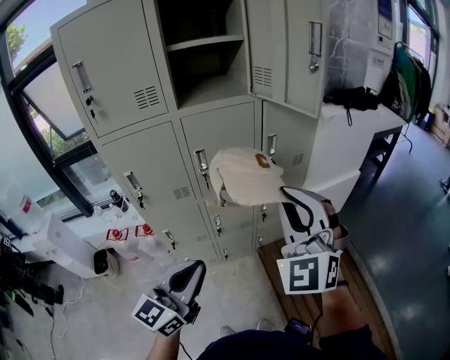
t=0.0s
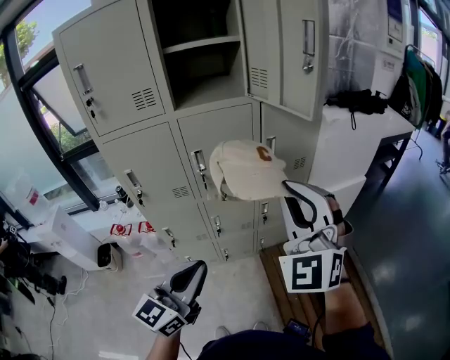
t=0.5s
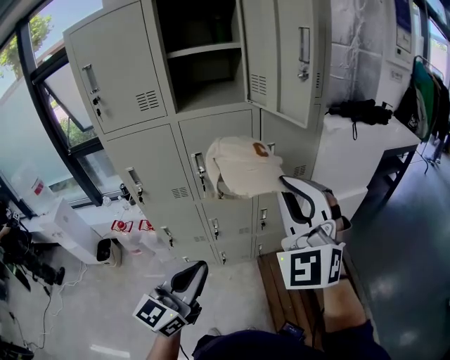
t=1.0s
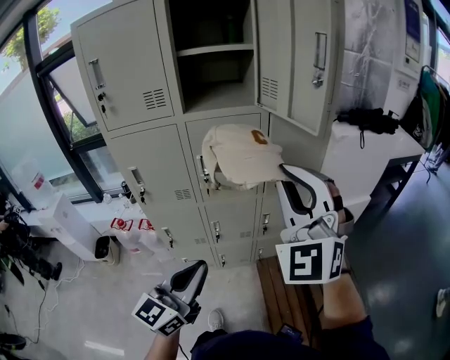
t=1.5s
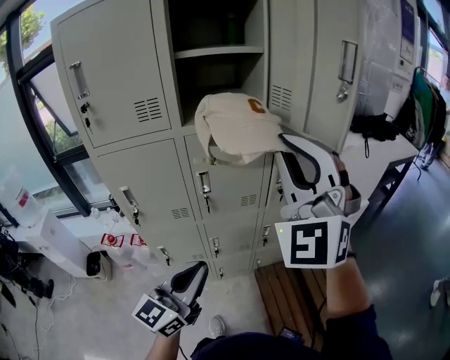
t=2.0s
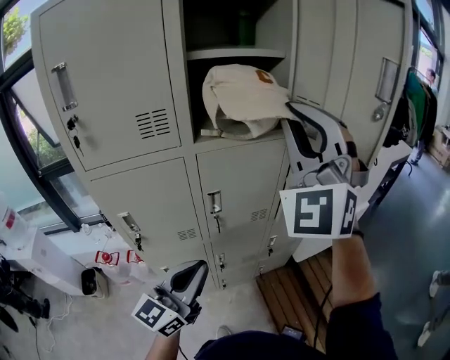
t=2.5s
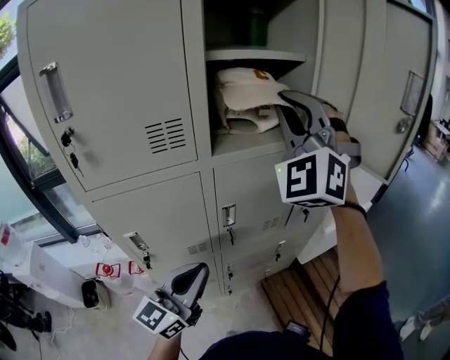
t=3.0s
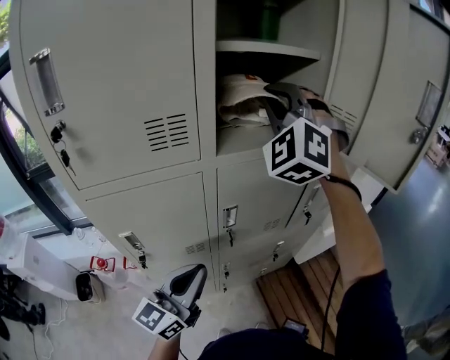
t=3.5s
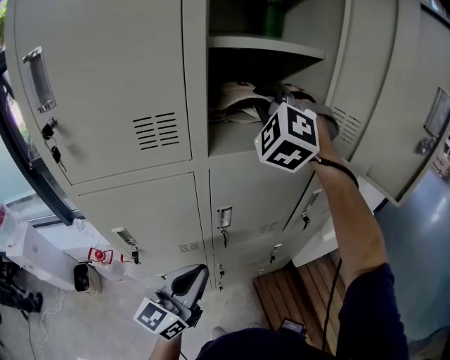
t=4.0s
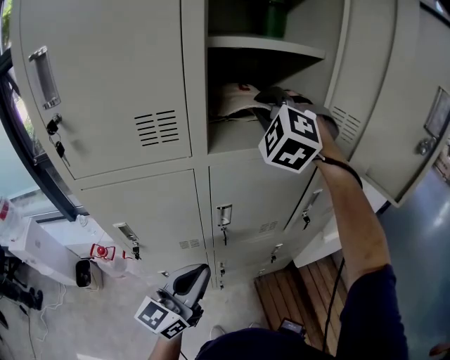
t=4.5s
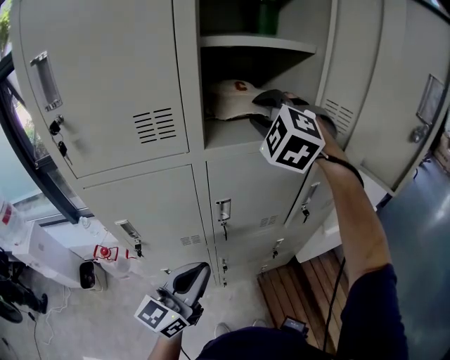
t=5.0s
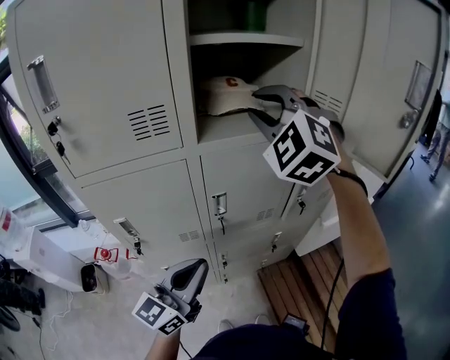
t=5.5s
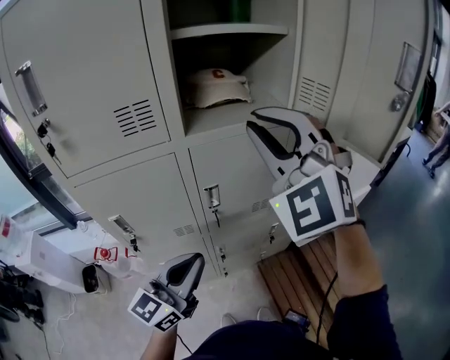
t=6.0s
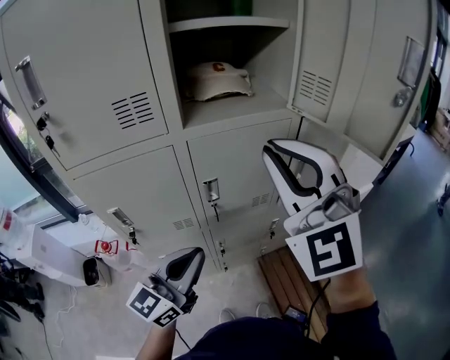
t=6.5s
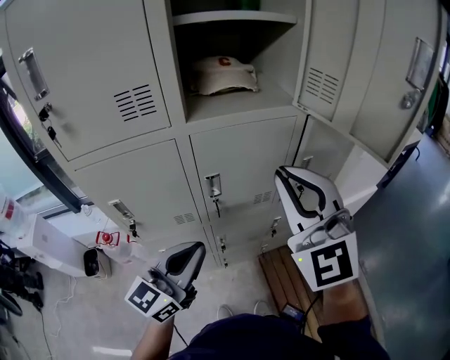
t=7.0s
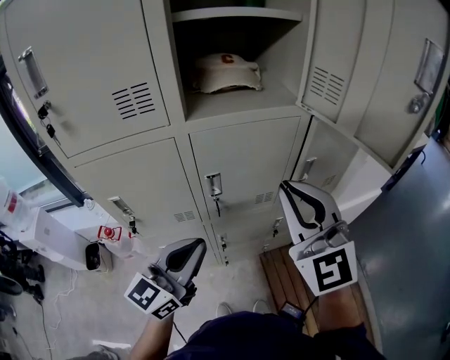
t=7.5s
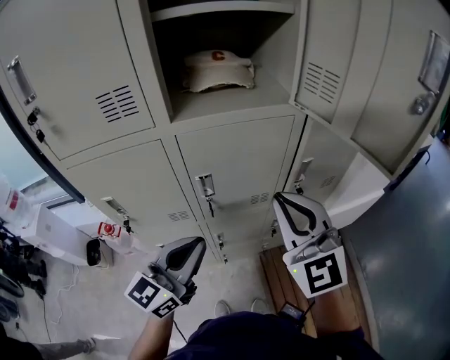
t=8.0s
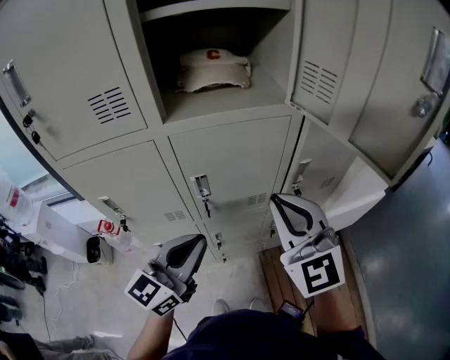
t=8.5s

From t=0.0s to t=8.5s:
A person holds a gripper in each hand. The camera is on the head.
From t=0.0s to t=2.0s: The right gripper goes some 15 cm upward and forward, while the left gripper heads forward, covering approximately 10 cm.
From t=2.0s to t=4.0s: The right gripper goes roughly 35 cm forward and to the left, and rotates about 30 degrees; the left gripper travels forward and to the left by about 20 cm.
From t=4.0s to t=6.5s: The left gripper shifts by about 5 cm. The right gripper travels backward by roughly 25 cm, and changes its angle by about 30 degrees.
From t=6.5s to t=8.5s: The right gripper is displaced downward and to the right by approximately 15 cm, and turns by roughly 20 degrees. The left gripper heads to the right, covering some 5 cm.

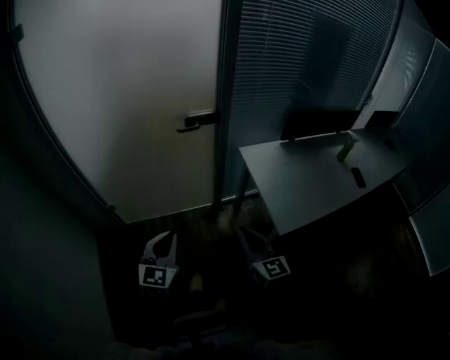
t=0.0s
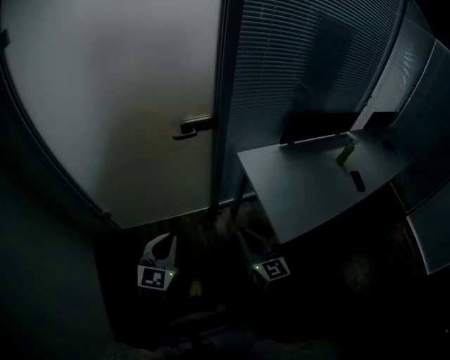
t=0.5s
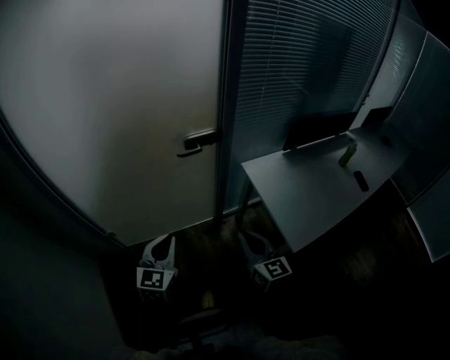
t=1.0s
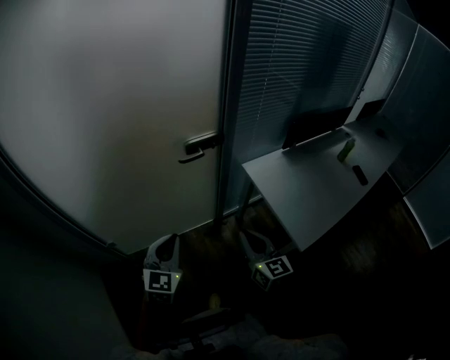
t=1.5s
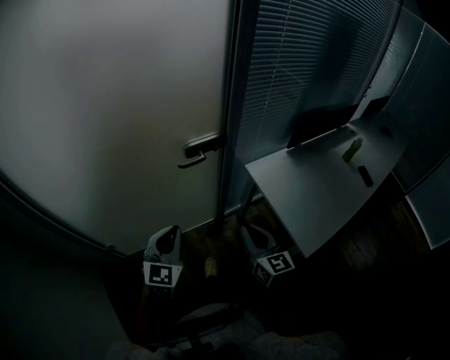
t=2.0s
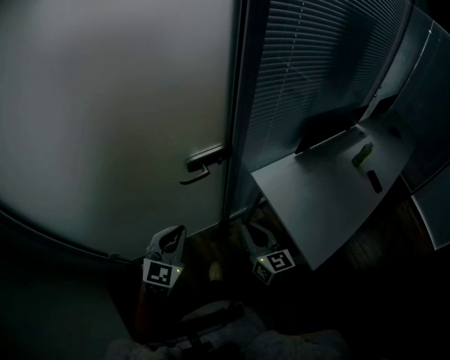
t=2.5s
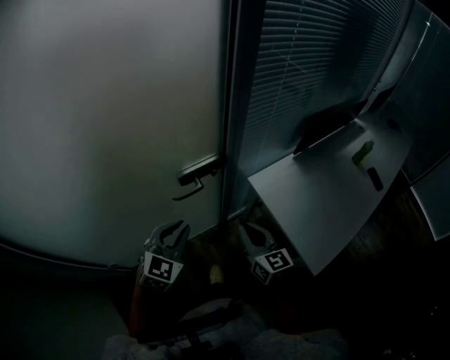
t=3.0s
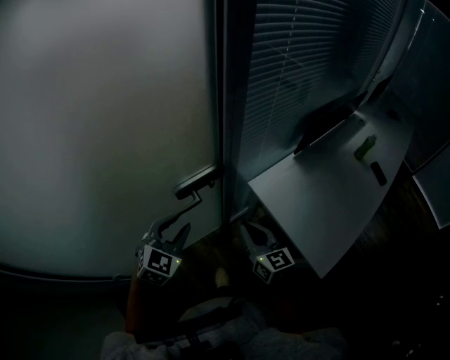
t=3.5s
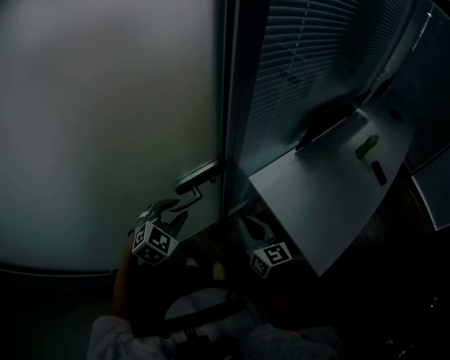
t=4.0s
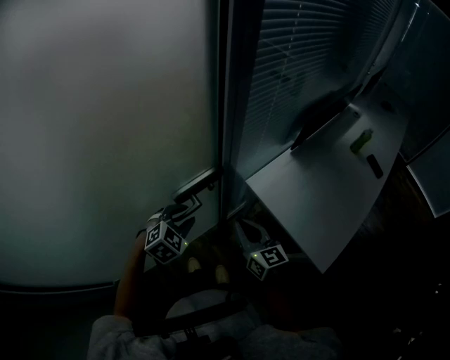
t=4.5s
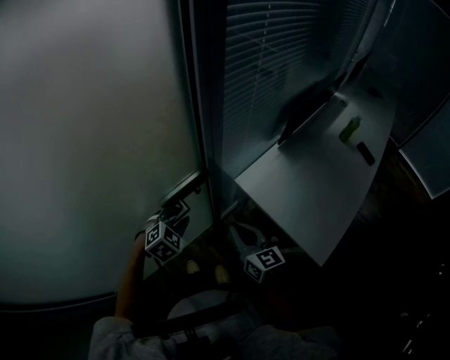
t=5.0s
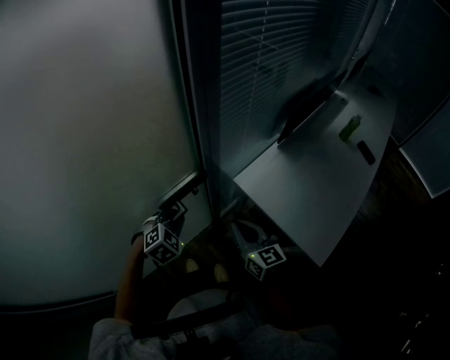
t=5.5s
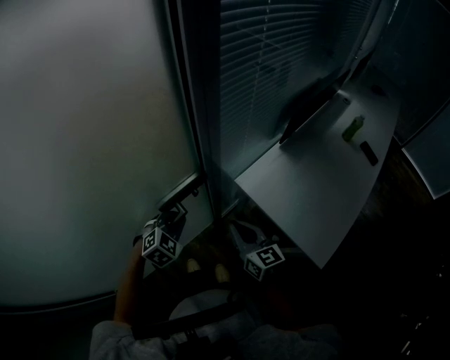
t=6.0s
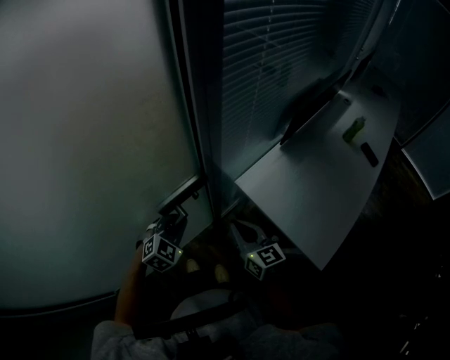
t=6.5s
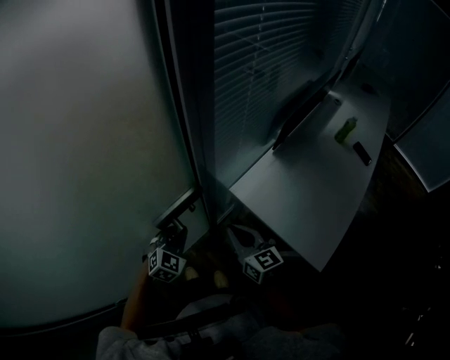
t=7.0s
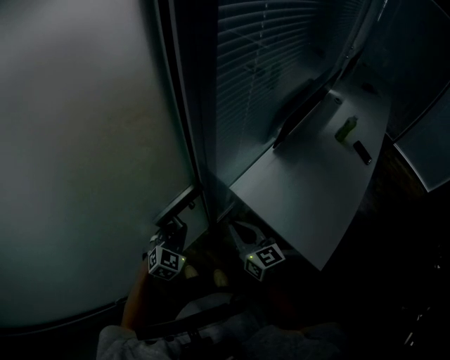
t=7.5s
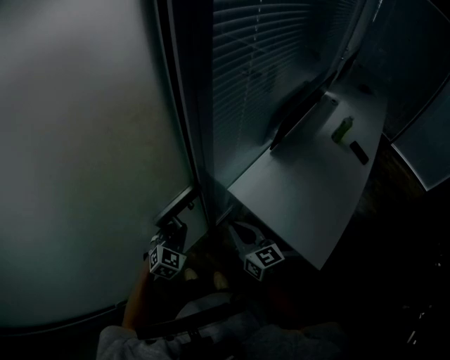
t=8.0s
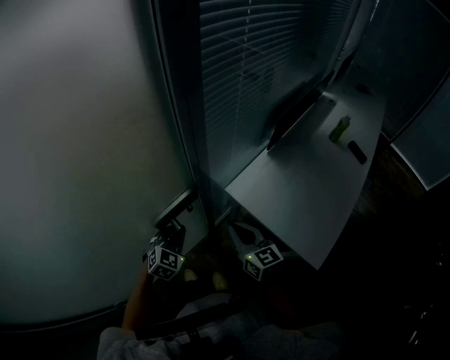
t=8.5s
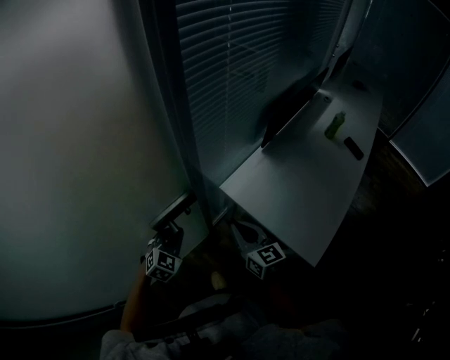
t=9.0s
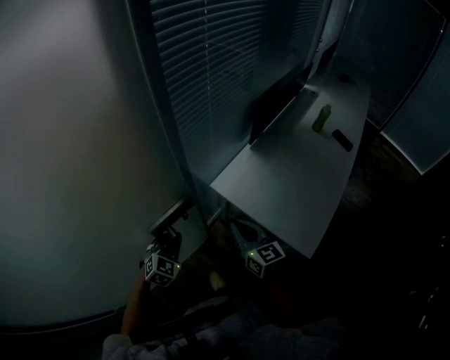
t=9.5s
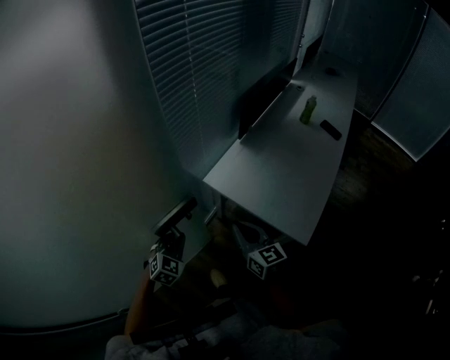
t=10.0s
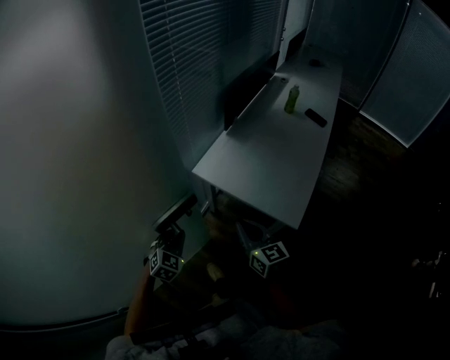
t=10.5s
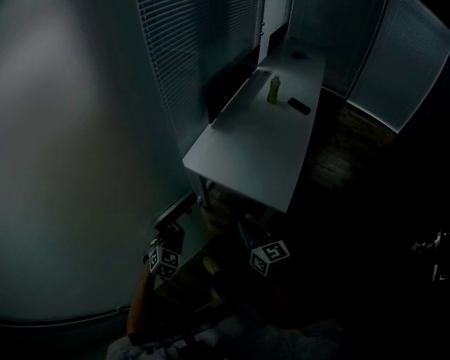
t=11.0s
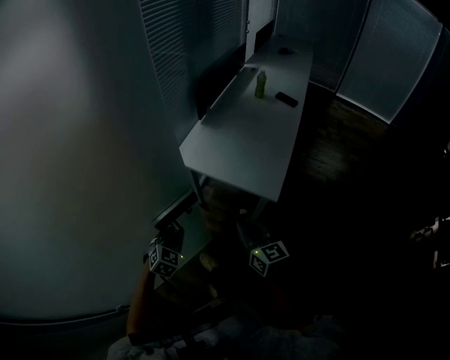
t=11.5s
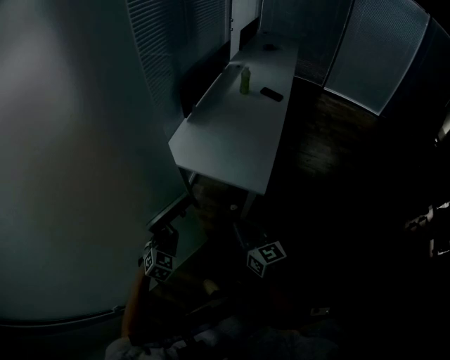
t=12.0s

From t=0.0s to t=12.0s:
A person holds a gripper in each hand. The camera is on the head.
From t=0.0s to t=2.0s: Both grippers move forward, roughly 20 cm.
From t=2.0s to t=4.0s: Both grippers move forward, approximately 20 cm. The left gripper swivels roughly 40 degrees, and opens up.
From t=4.0s to t=6.0s: The left gripper travels downward by about 10 cm, and closes.
From t=6.0s to t=8.0s: There are only small adjustments of the grippers.
From t=8.0s to t=10.0s: The left gripper goes roughly 10 cm backward and to the right, while the right gripper is displaced to the right and backward by about 10 cm.
From t=10.0s to t=12.0s: The two grippers go approximately 20 cm backward and to the right.

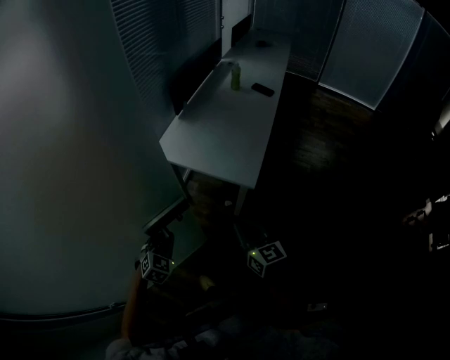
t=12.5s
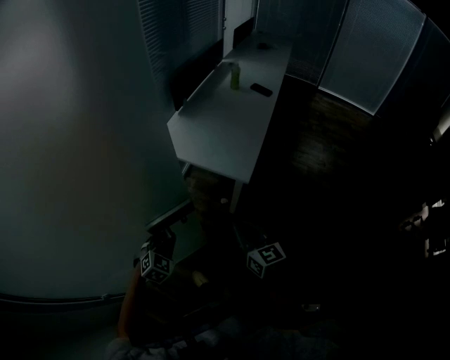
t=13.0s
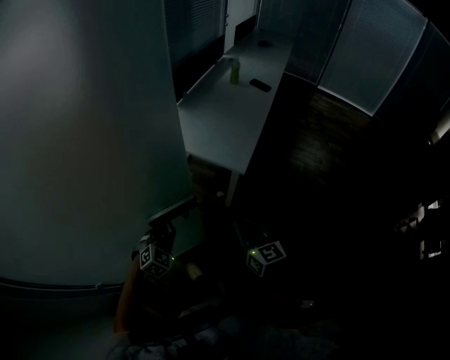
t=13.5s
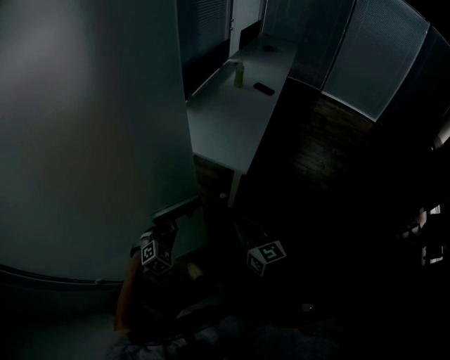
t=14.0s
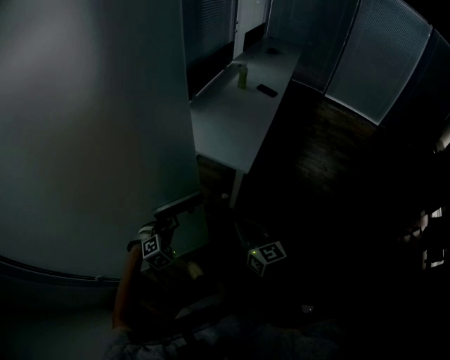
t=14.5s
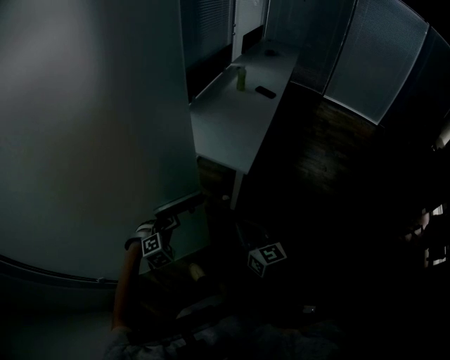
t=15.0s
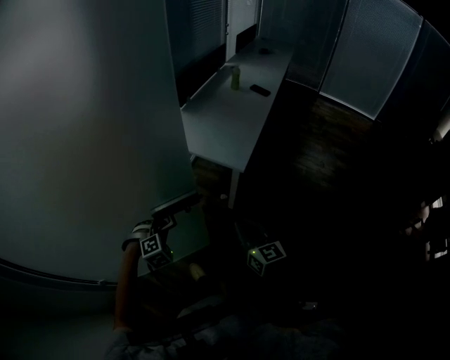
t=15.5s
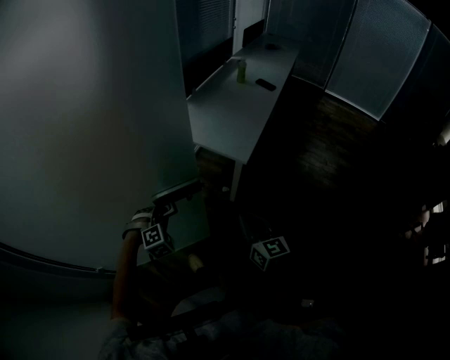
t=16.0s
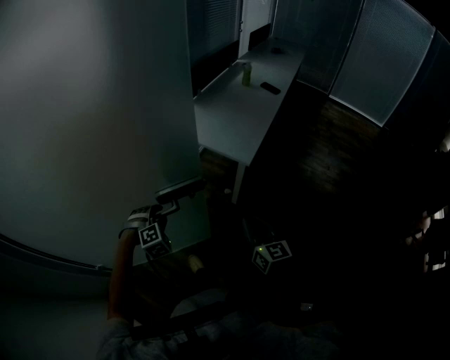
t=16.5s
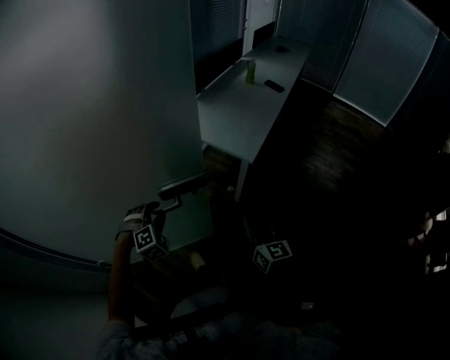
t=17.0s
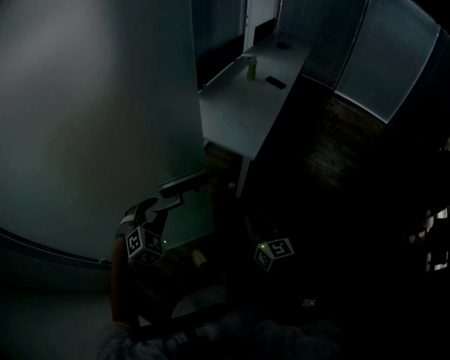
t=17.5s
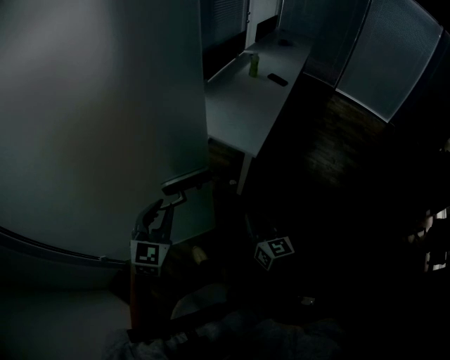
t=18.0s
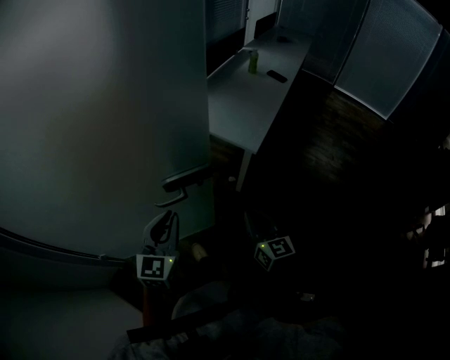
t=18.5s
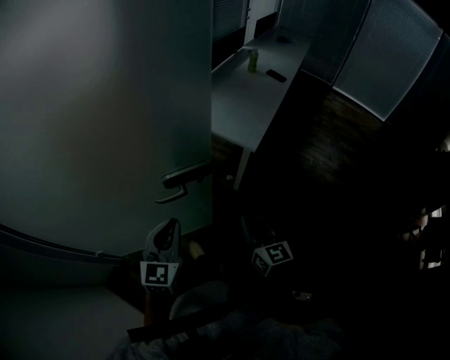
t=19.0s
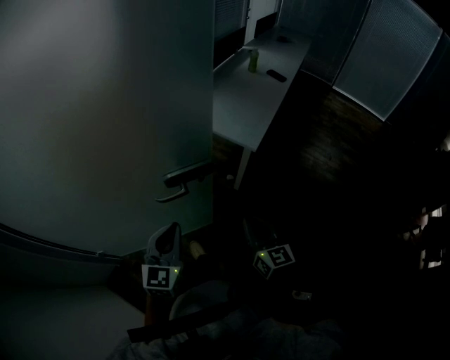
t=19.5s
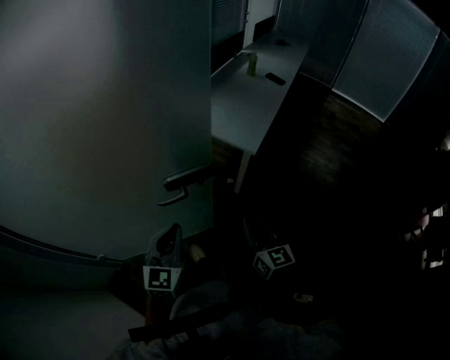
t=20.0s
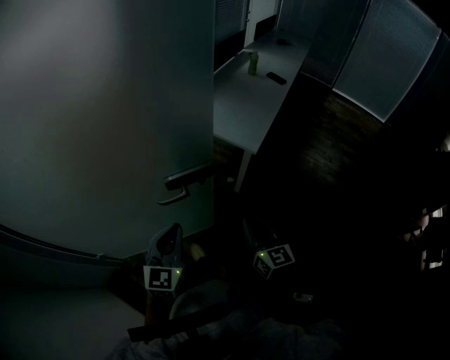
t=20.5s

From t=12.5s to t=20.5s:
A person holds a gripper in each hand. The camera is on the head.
From t=12.5s to t=14.5s: Both grippers move backward, approximately 10 cm. The left gripper changes its angle by about 20 degrees.
From t=14.5s to t=16.5s: The left gripper opens.
From t=16.5s to t=18.5s: The left gripper goes some 15 cm upward and backward, angles its fingers upward, by some 40 degrees, and closes its fingers.
From t=18.5s to t=20.5s: There are only small adjustments of the grippers.
